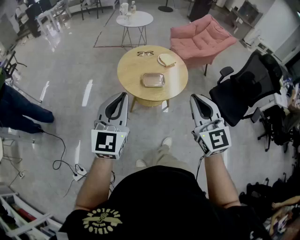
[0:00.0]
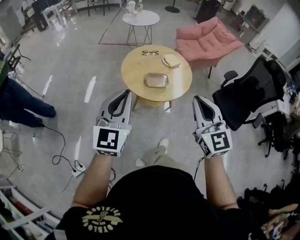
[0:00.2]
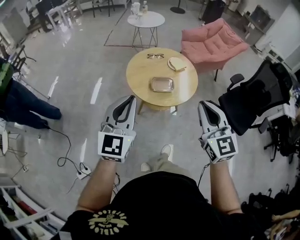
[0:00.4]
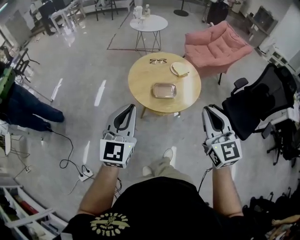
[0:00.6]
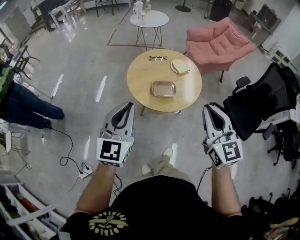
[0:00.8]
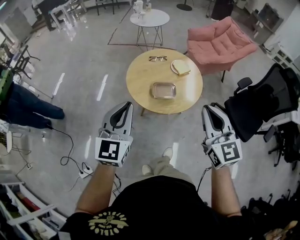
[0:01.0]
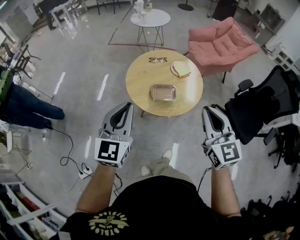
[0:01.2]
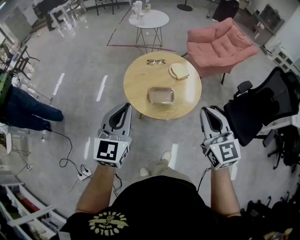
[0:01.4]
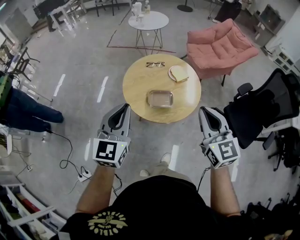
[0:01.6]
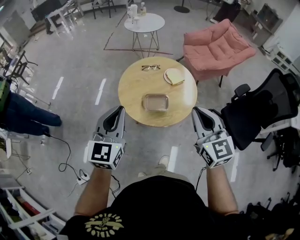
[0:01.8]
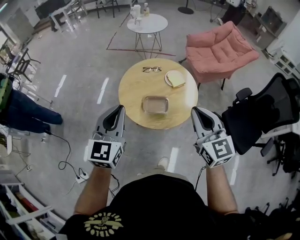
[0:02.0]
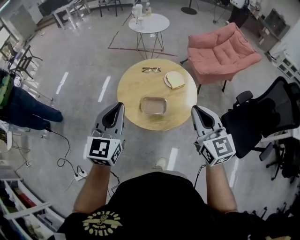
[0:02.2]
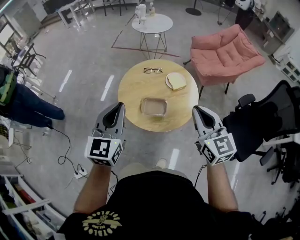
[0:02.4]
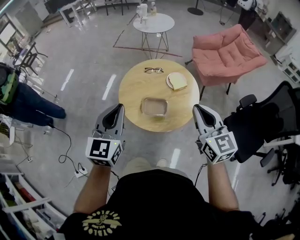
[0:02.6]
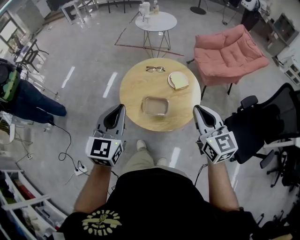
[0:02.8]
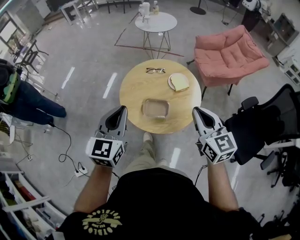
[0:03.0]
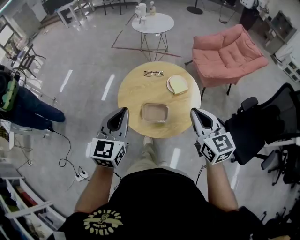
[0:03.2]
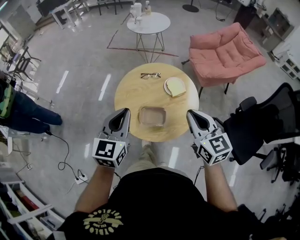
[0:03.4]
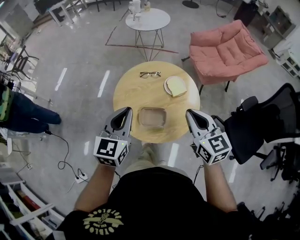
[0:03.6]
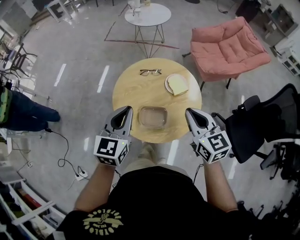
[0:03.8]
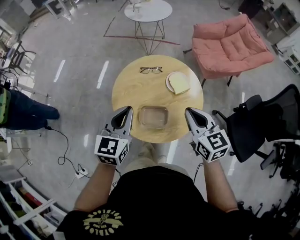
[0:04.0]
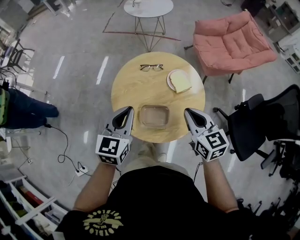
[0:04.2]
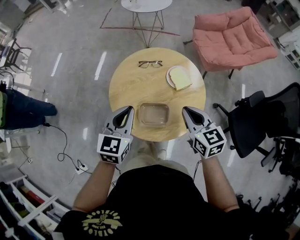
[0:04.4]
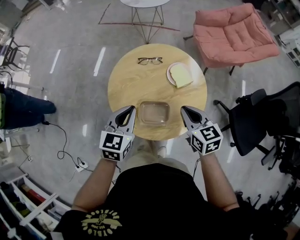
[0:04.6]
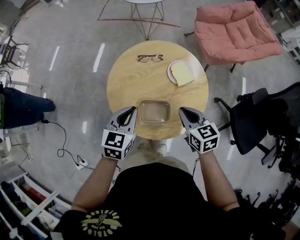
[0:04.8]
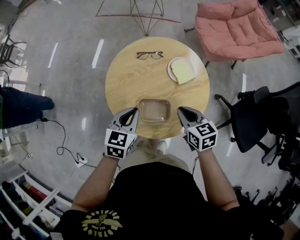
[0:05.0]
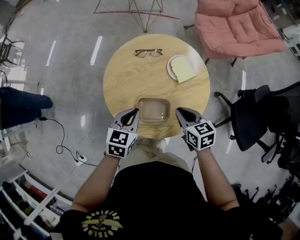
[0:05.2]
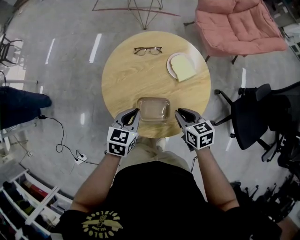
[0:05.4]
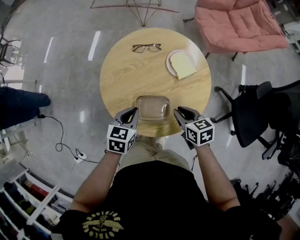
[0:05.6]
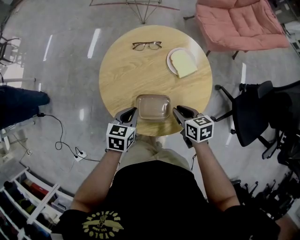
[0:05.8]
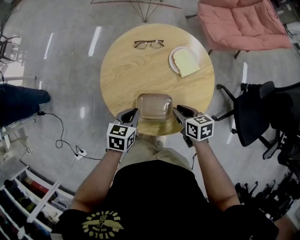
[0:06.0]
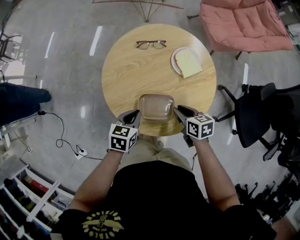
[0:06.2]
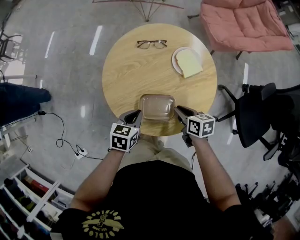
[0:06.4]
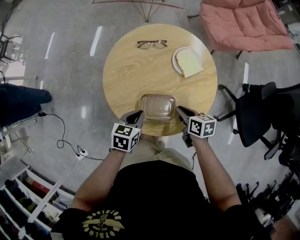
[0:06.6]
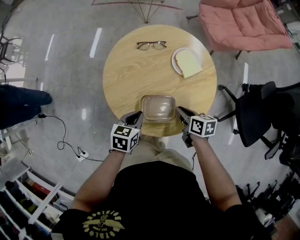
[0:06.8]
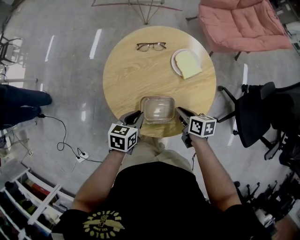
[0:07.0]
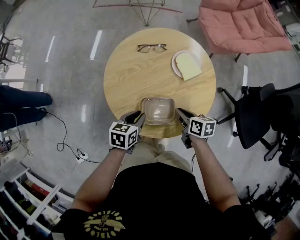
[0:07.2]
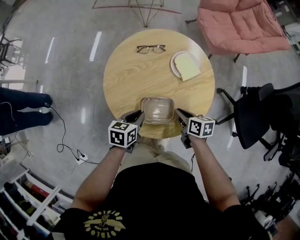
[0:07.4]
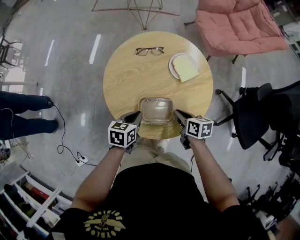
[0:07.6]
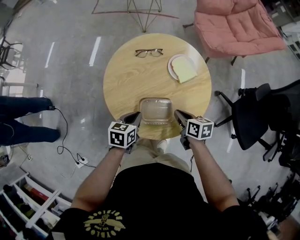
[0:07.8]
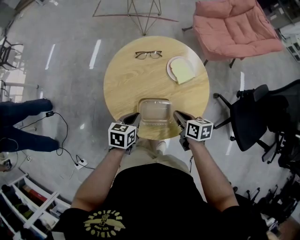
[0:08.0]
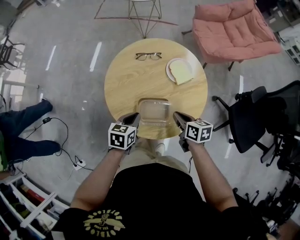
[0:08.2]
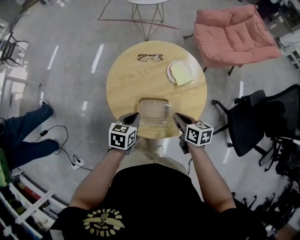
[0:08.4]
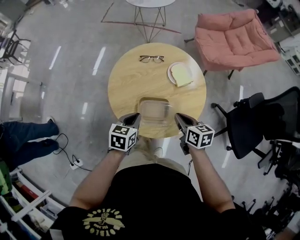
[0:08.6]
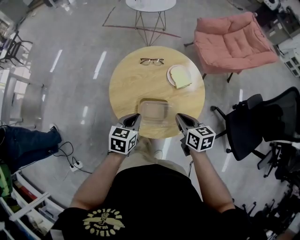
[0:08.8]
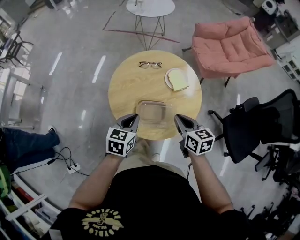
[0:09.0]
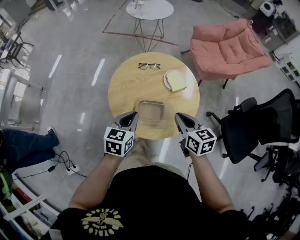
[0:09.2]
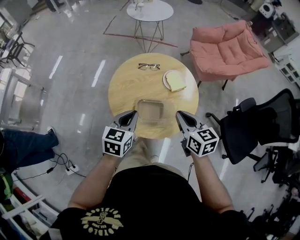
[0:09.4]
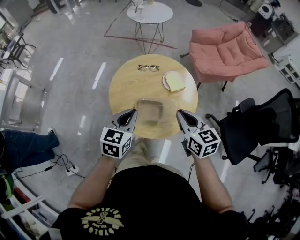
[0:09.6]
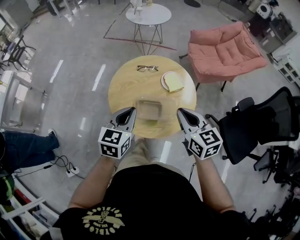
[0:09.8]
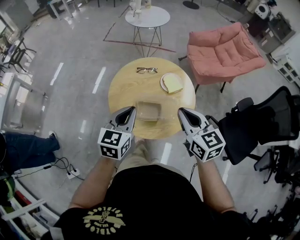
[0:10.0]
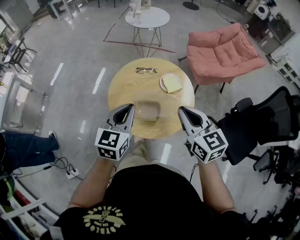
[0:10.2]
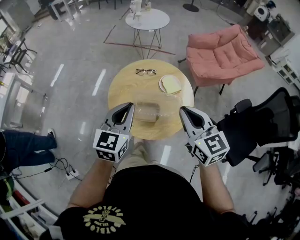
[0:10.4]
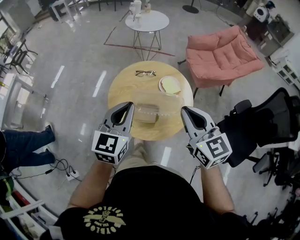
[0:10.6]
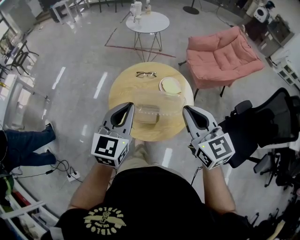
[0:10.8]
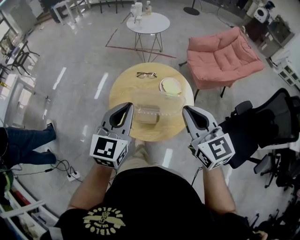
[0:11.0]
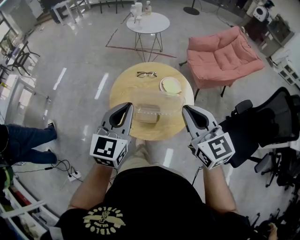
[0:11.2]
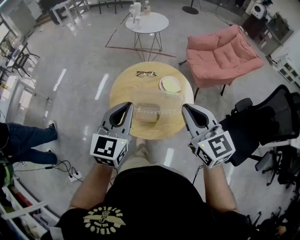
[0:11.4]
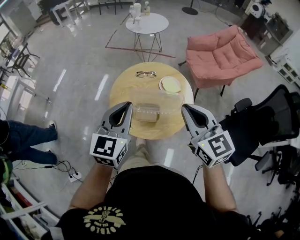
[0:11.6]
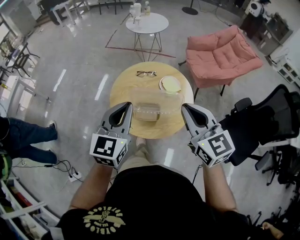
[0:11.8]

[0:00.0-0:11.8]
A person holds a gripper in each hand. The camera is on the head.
0:00.0 to 0:01.4: The left gripper heads forward, covering approximately 15 cm. Meanwhile the right gripper heads forward and to the right, covering about 15 cm.
0:01.4 to 0:03.0: The grippers both shift forward and to the right by approximately 10 cm.
0:03.0 to 0:04.4: The right gripper goes roughly 20 cm downward and forward, while the left gripper shifts some 20 cm forward and downward.
0:04.4 to 0:06.0: The grippers both shift downward by about 20 cm. The right gripper rotates about 30 degrees, and opens its fingers, while the left gripper rotates some 30 degrees.
0:06.0 to 0:07.4: The grippers make only small movements.
0:07.4 to 0:08.8: Both grippers move upward, roughly 10 cm. The right gripper swivels approximately 20 degrees.
0:08.8 to 0:10.4: The two grippers go some 20 cm upward. The left gripper rotates about 30 degrees. Meanwhile the right gripper changes its angle by about 30 degrees.
0:10.4 to 0:11.8: The left gripper moves upward, some 5 cm.

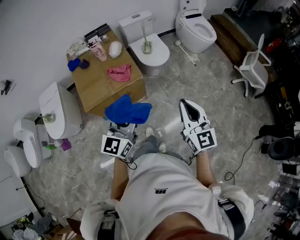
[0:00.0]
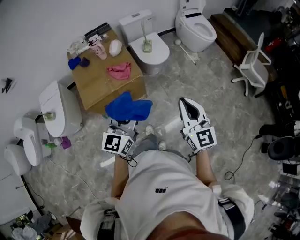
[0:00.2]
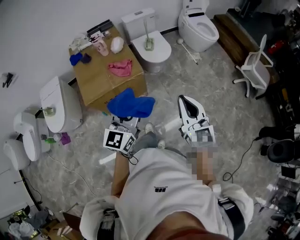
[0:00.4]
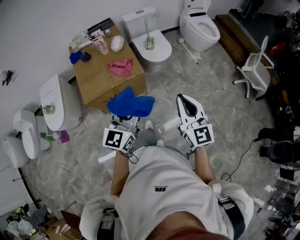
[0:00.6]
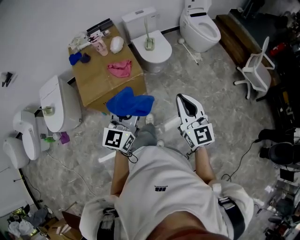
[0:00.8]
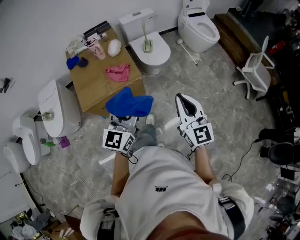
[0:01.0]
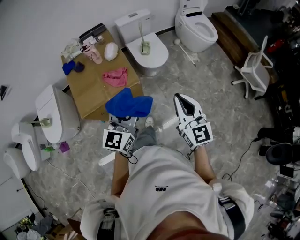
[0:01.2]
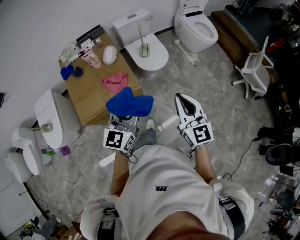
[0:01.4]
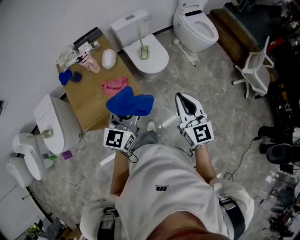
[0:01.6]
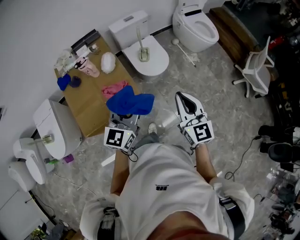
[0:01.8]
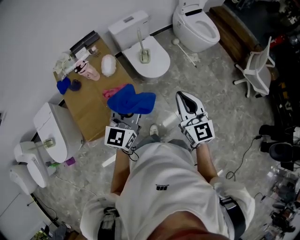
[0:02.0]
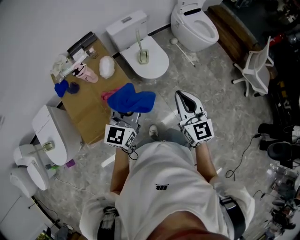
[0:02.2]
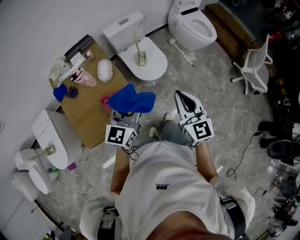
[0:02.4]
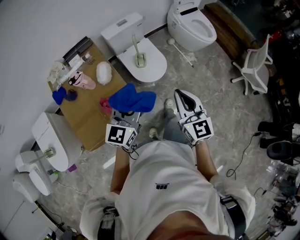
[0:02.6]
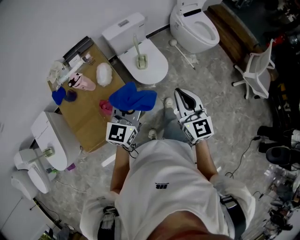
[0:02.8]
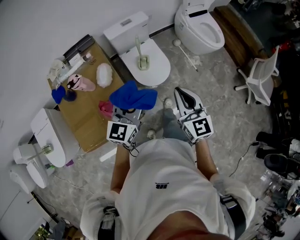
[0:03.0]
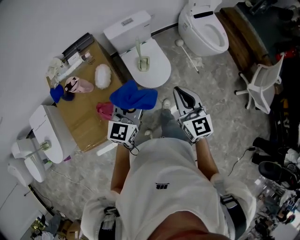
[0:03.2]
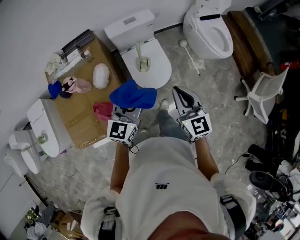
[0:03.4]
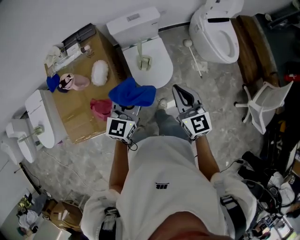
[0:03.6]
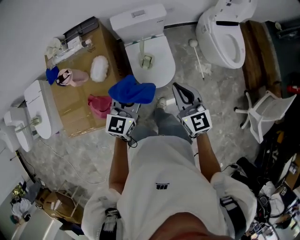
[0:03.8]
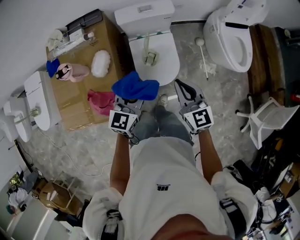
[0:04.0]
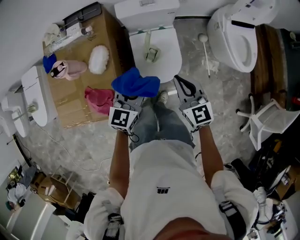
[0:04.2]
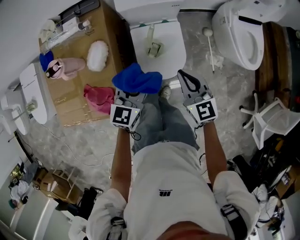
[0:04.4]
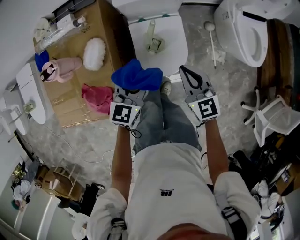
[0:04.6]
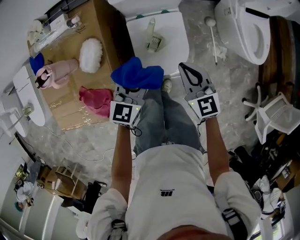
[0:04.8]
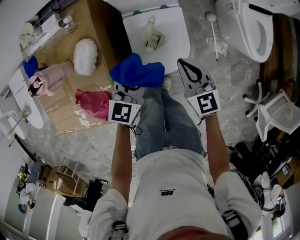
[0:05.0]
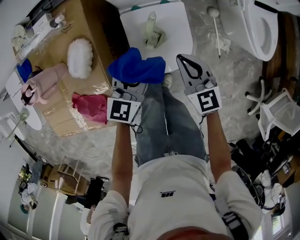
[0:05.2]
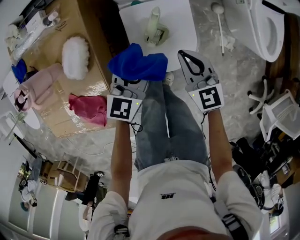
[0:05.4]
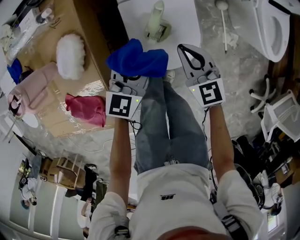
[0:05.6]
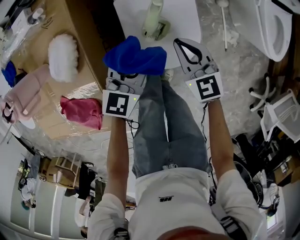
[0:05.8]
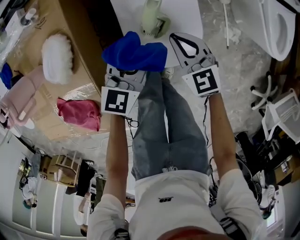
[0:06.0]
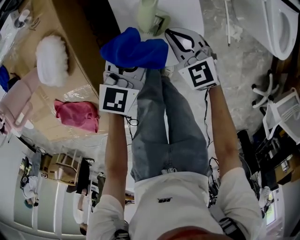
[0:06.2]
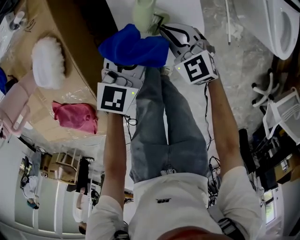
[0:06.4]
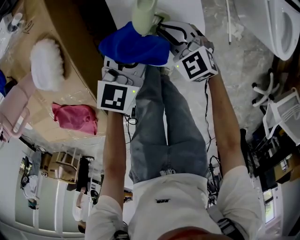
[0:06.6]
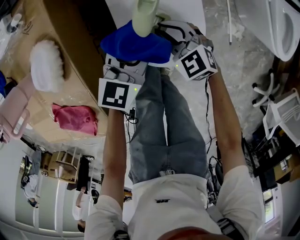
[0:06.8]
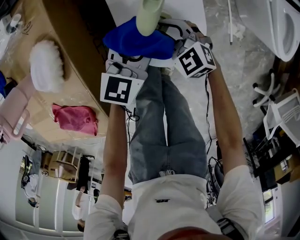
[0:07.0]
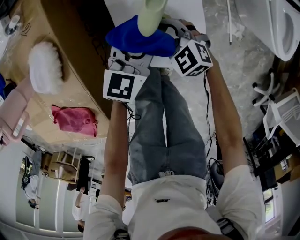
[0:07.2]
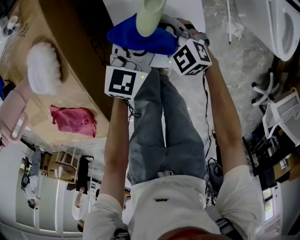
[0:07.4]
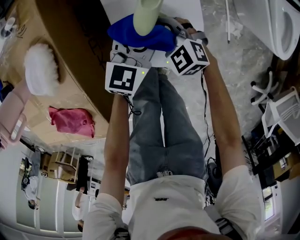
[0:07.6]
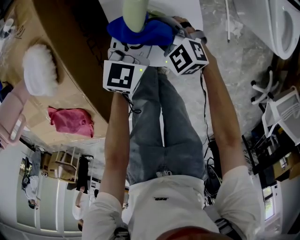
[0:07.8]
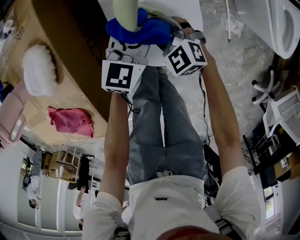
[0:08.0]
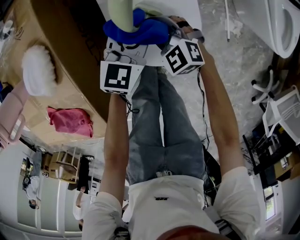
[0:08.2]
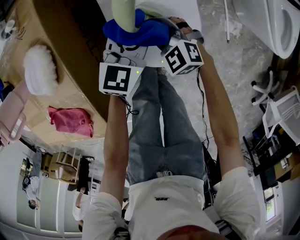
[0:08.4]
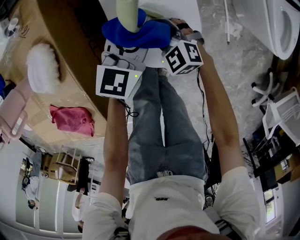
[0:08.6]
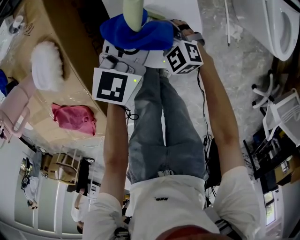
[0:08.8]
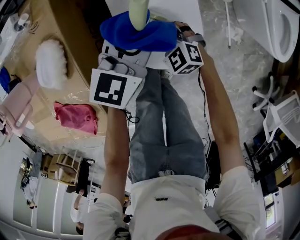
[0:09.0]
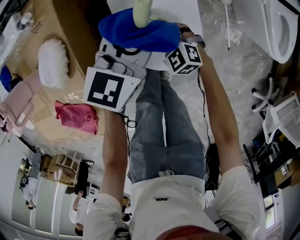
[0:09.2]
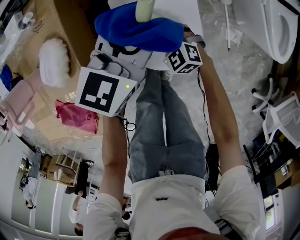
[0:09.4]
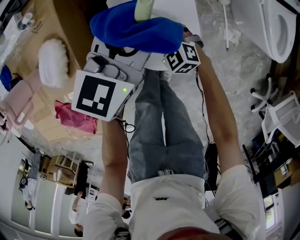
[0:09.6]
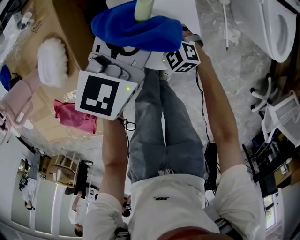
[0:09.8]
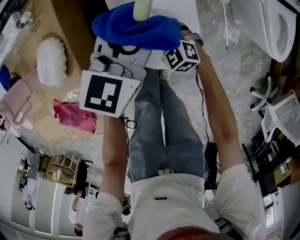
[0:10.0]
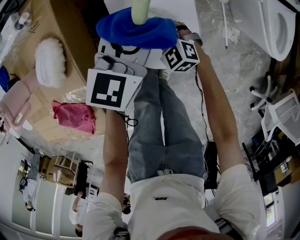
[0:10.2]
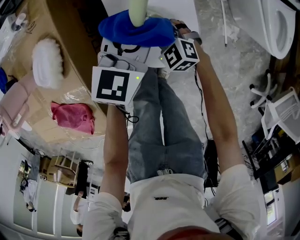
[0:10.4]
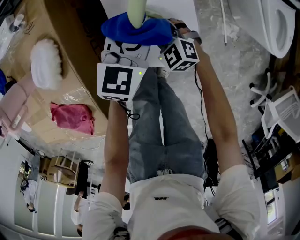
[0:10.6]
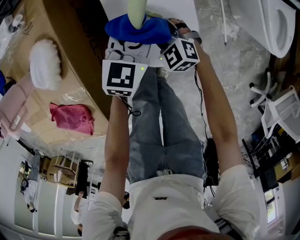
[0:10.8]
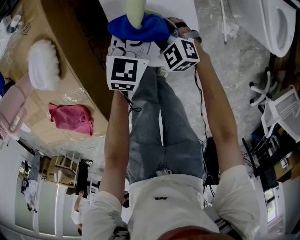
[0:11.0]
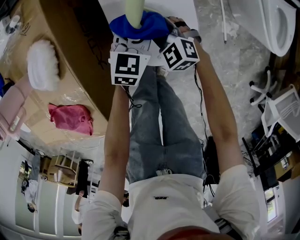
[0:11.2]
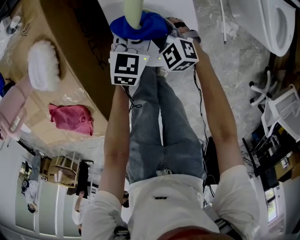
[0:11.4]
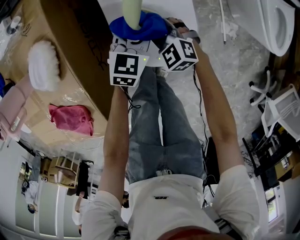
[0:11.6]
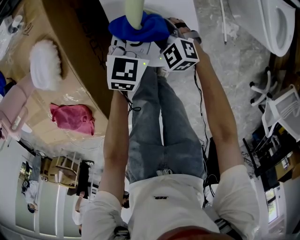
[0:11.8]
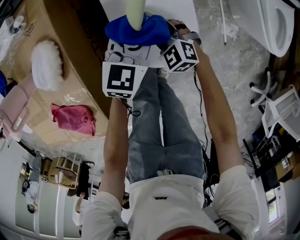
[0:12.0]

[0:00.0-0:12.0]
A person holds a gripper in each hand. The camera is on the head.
0:00.0 to 0:01.6: Both grippers move forward, about 20 cm.
0:01.6 to 0:03.0: Both grippers move forward, approximately 25 cm.
0:03.0 to 0:04.4: Both grippers move forward and downward, roughly 30 cm. The right gripper turns by roughly 30 degrees. The left gripper changes its angle by some 20 degrees.
0:04.4 to 0:06.0: The two grippers go approximately 25 cm downward.
0:06.0 to 0:07.6: The right gripper is displaced downward by about 10 cm, changes its angle by approximately 30 degrees, and opens its fingers. The left gripper heads downward and to the right, covering roughly 10 cm.
0:07.6 to 0:09.0: The left gripper shifts approximately 10 cm upward.
